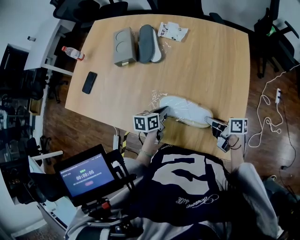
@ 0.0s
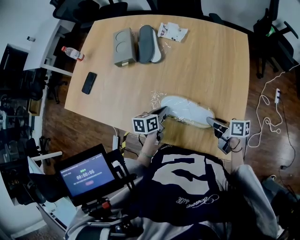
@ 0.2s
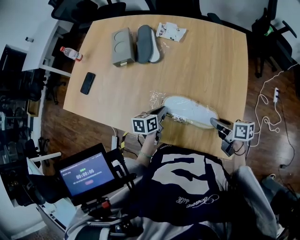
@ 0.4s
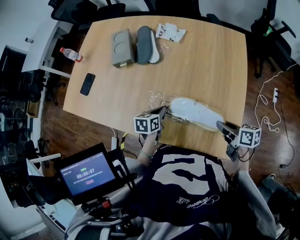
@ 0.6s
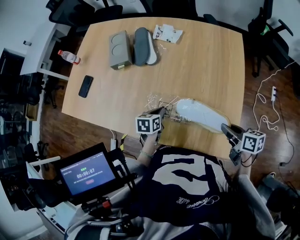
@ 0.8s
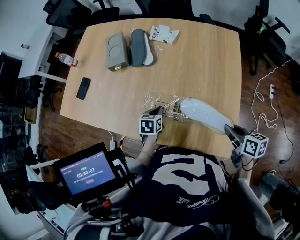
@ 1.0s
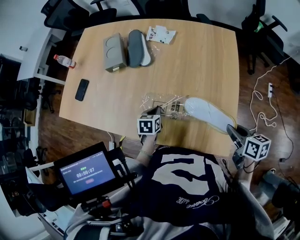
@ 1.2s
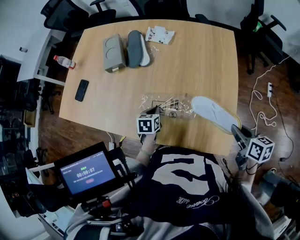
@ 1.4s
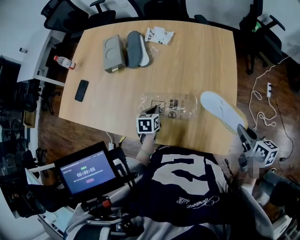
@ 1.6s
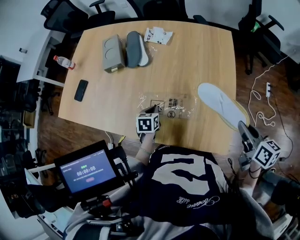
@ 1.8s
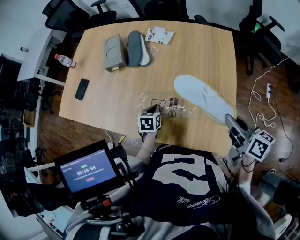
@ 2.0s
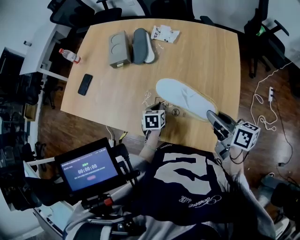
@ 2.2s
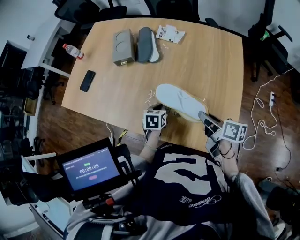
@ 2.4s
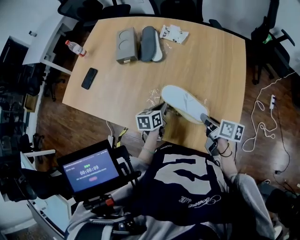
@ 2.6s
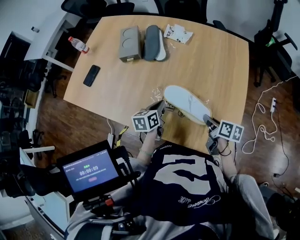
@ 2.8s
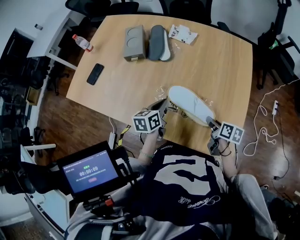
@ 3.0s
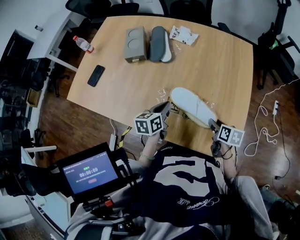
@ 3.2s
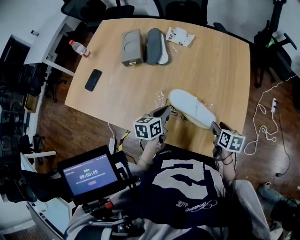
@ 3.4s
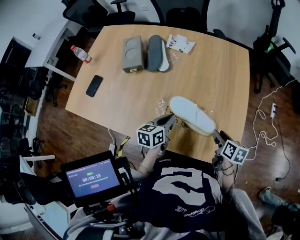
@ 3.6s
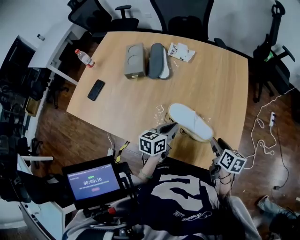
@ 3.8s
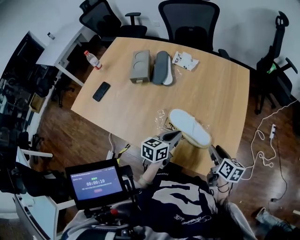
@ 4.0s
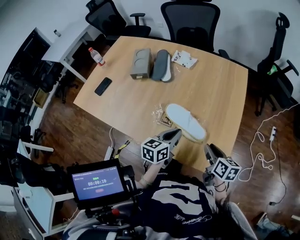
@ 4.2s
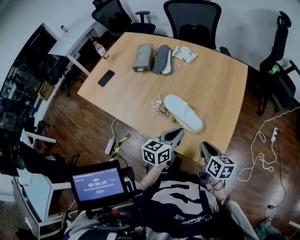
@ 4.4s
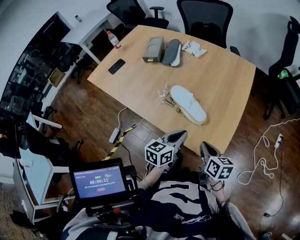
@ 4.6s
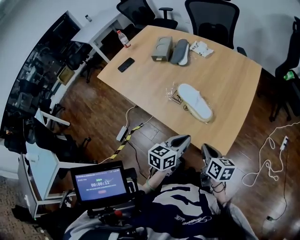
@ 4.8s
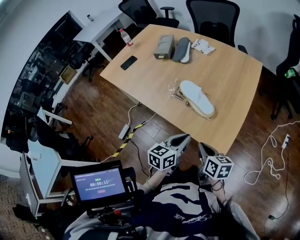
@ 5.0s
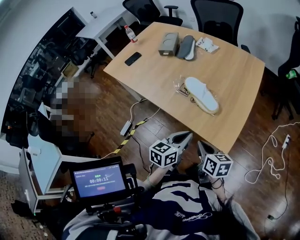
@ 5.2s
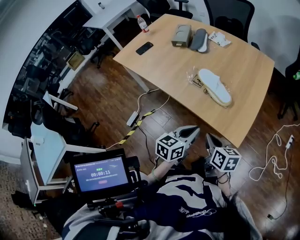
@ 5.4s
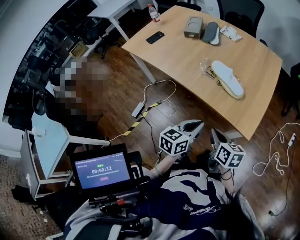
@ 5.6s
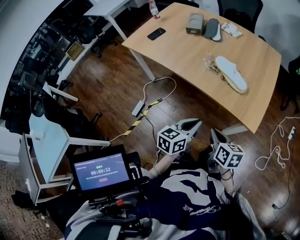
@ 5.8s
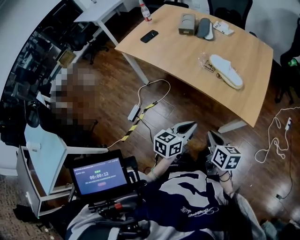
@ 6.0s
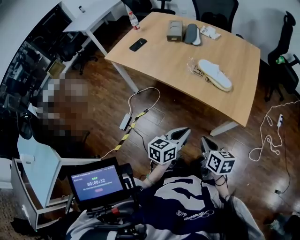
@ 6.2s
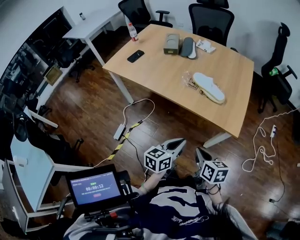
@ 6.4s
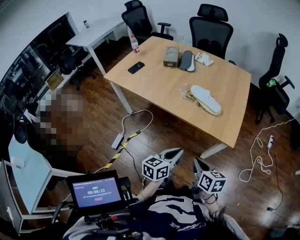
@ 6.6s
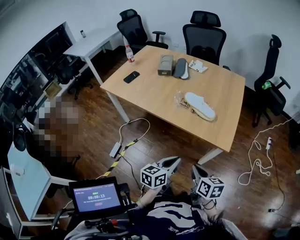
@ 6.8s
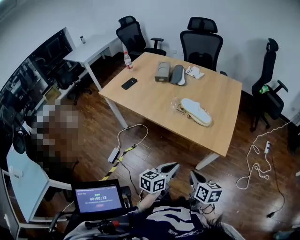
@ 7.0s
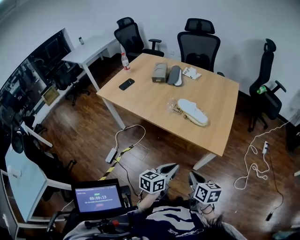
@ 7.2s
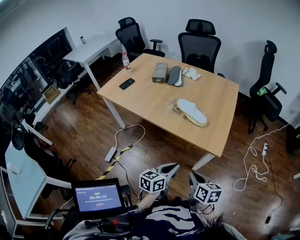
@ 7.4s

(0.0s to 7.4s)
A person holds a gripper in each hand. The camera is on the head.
0.0s - 1.4s: The left gripper turns by some 20 degrees; the right gripper moves to the right, upward and backward, some 20 cm, and turns by some 40 degrees.
1.4s - 3.0s: The right gripper shifts roughly 20 cm to the left, downward and forward. Meanwhile the left gripper shifts approximately 10 cm upward, and changes its angle by about 30 degrees.
3.0s - 4.4s: The left gripper heads to the right, backward and upward, covering some 20 cm, while the right gripper goes some 15 cm backward and upward, rotates some 20 degrees, and opens, then closes once more.
4.4s - 6.0s: The grippers both shift backward and to the left by about 35 cm.
6.0s - 7.4s: Both grippers travel together to the right, about 10 cm.

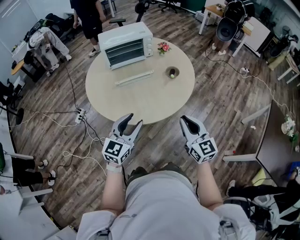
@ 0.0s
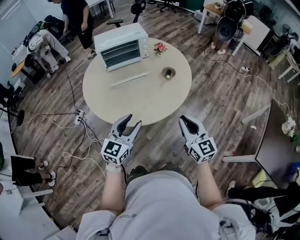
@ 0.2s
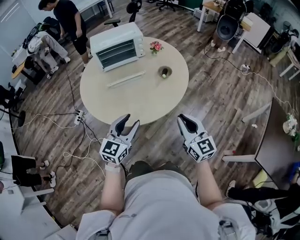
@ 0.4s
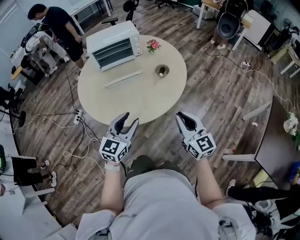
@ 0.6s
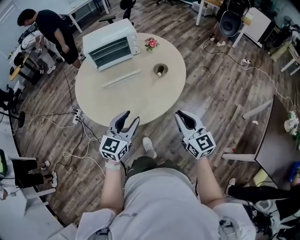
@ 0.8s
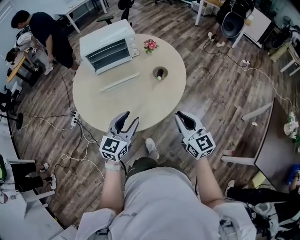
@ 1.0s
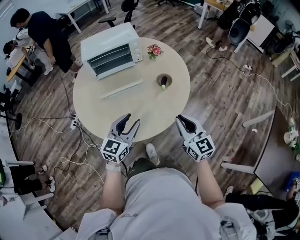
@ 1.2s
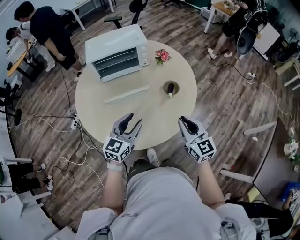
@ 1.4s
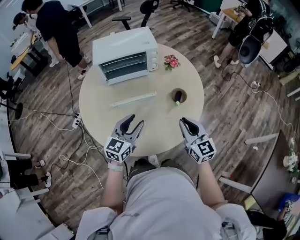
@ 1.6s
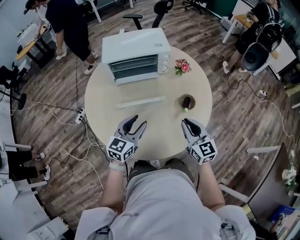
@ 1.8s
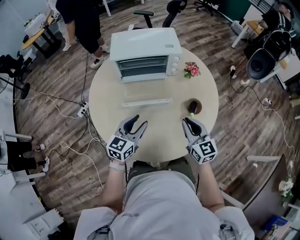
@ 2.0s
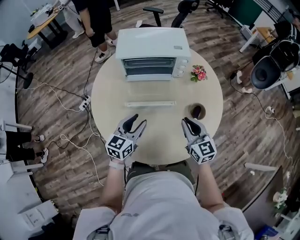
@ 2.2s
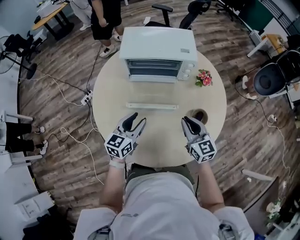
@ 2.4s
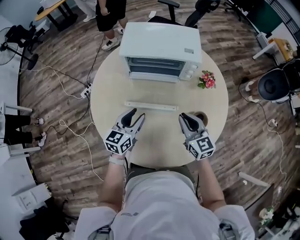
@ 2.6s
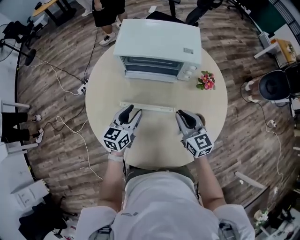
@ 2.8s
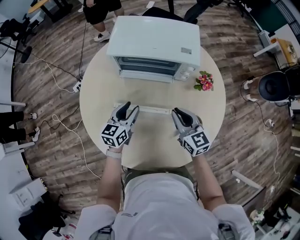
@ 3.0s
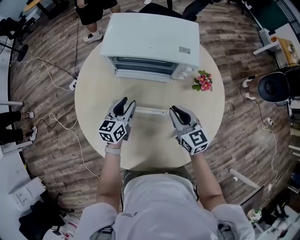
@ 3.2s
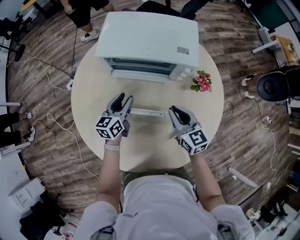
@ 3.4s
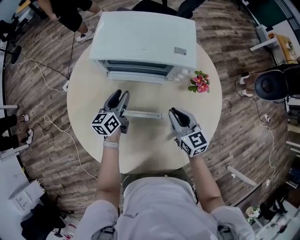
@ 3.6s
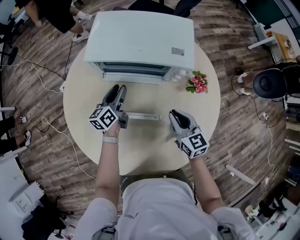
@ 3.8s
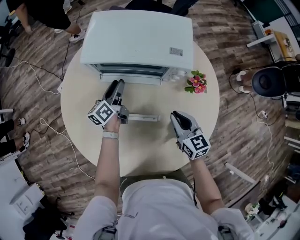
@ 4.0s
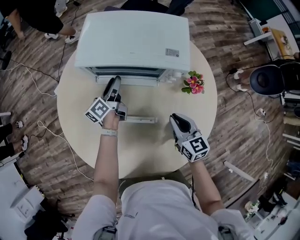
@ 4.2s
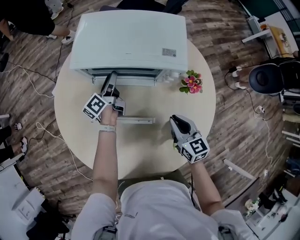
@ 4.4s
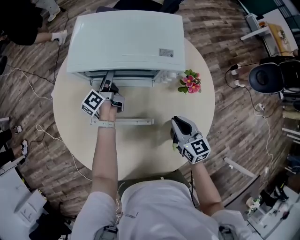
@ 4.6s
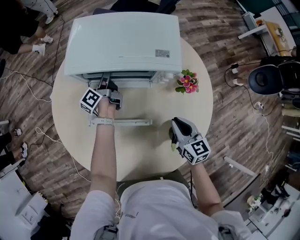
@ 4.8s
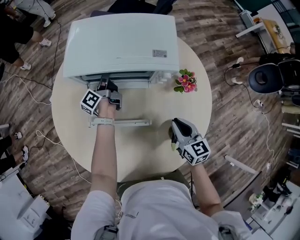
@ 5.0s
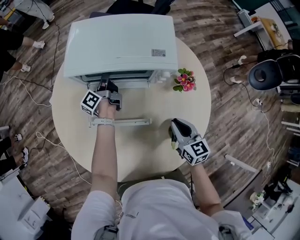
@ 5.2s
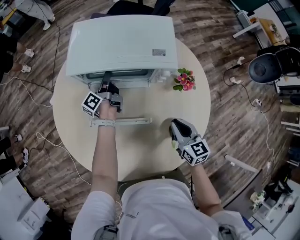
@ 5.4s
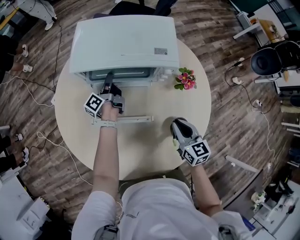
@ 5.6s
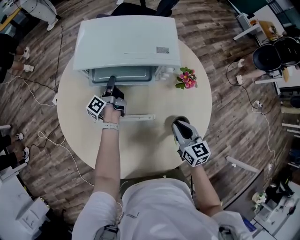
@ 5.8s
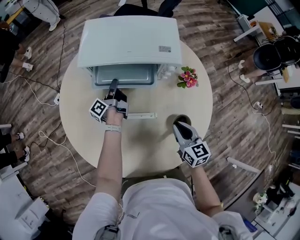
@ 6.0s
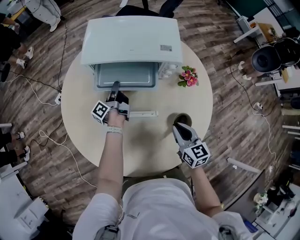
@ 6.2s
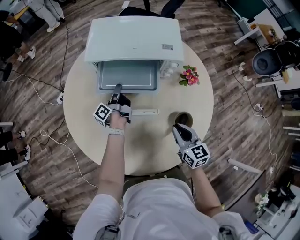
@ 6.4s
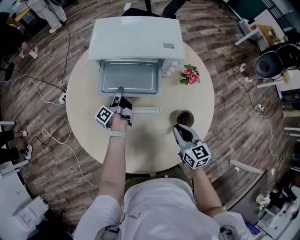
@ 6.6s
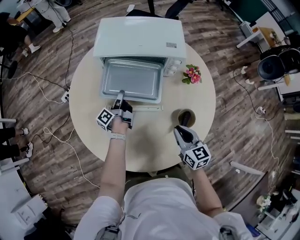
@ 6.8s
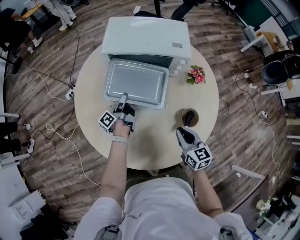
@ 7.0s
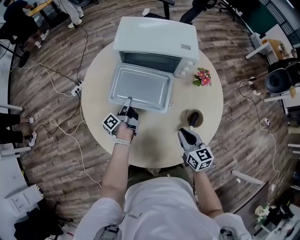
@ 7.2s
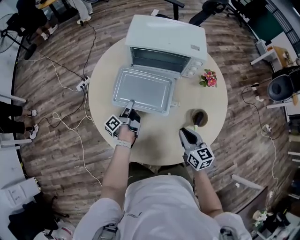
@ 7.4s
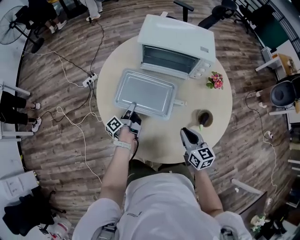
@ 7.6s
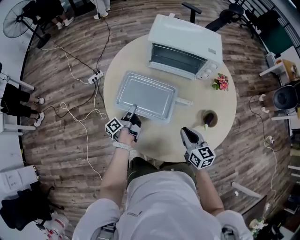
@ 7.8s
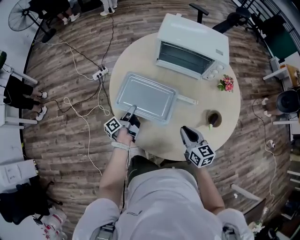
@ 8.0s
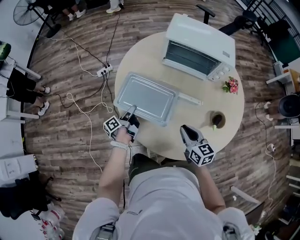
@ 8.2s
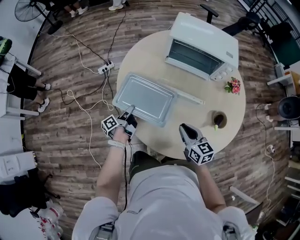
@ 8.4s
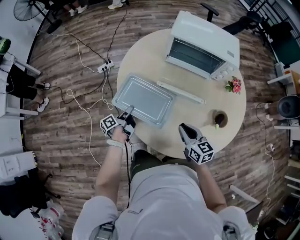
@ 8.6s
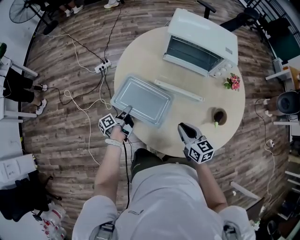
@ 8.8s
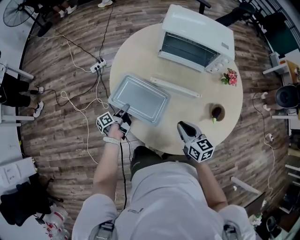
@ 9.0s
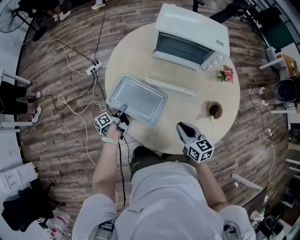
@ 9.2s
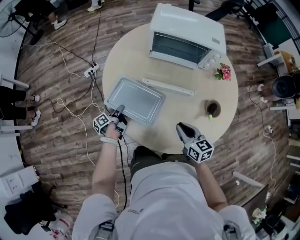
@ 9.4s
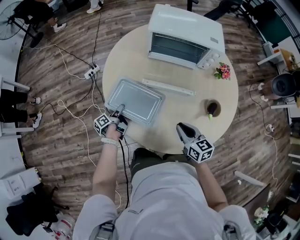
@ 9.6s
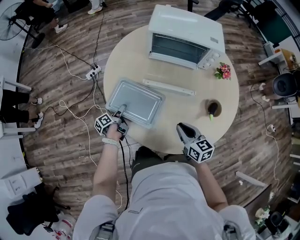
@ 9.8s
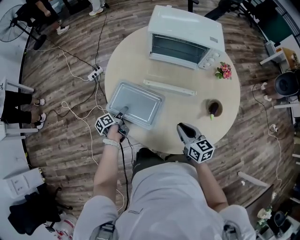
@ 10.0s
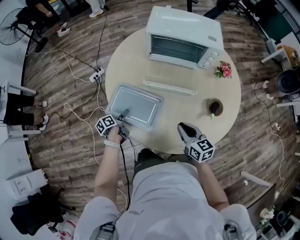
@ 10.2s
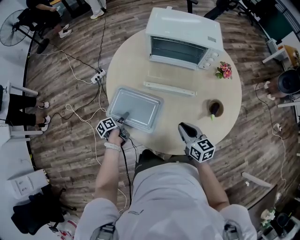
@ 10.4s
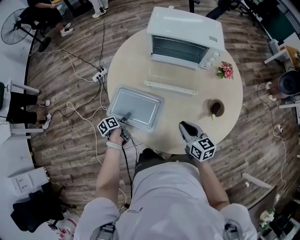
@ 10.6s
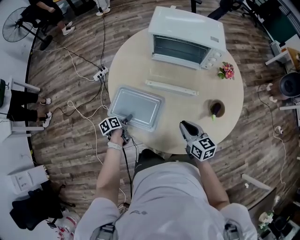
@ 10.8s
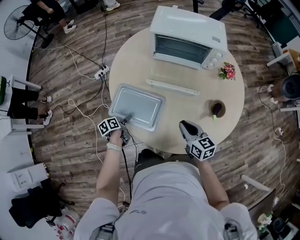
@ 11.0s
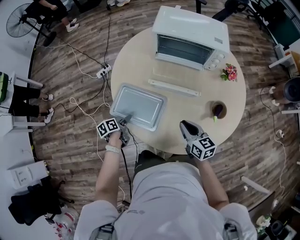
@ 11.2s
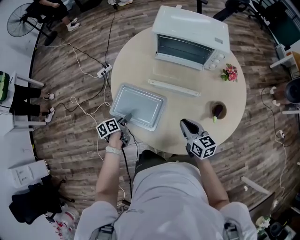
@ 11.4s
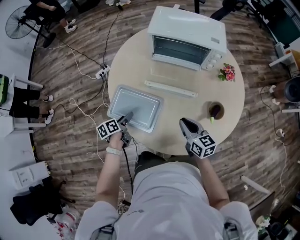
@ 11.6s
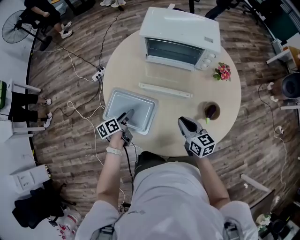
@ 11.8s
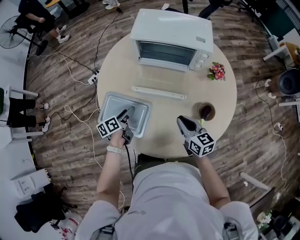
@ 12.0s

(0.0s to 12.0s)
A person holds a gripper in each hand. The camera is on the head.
0.0s - 1.6s: The two grippers go about 25 cm forward.
1.6s - 3.0s: The left gripper travels forward and downward by roughly 25 cm, and turns by some 30 degrees, while the right gripper heads forward, covering approximately 25 cm, and rotates roughly 30 degrees.
3.0s - 4.4s: The right gripper shifts about 10 cm to the right and downward. The left gripper is displaced forward by some 20 cm, and rolls counterclockwise, seen from behind, by approximately 40 degrees.
4.4s - 6.0s: The left gripper changes its angle by about 20 degrees, and closes its fingers; the right gripper shifts approximately 5 cm backward.
6.0s - 7.6s: The right gripper travels to the left and backward by about 15 cm. Meanwhile the left gripper is displaced backward and to the left by about 25 cm.
7.6s - 9.0s: The right gripper travels to the left by some 10 cm, while the left gripper goes about 15 cm to the left, downward and backward.
9.0s - 10.4s: The left gripper changes its angle by roughly 30 degrees, and opens.
10.4s - 12.0s: The left gripper goes about 15 cm to the right, upward and forward, and rotates about 20 degrees; the right gripper moves to the right and forward, some 10 cm.

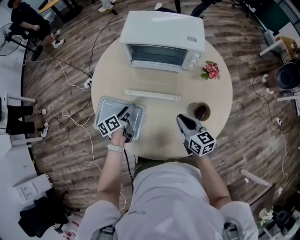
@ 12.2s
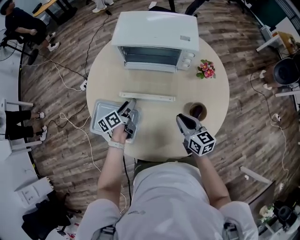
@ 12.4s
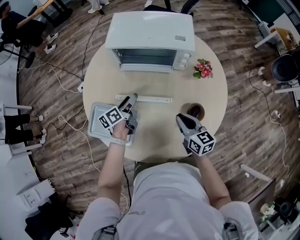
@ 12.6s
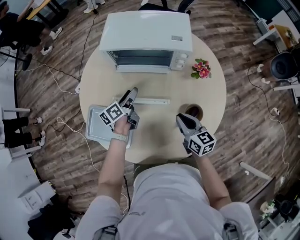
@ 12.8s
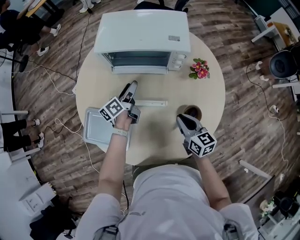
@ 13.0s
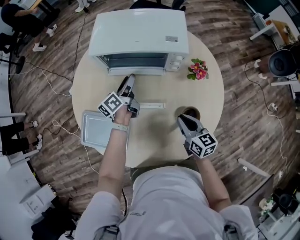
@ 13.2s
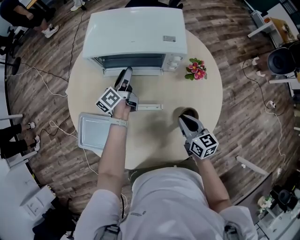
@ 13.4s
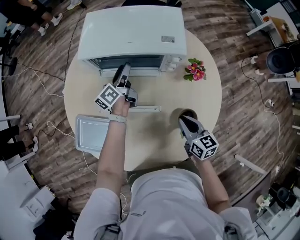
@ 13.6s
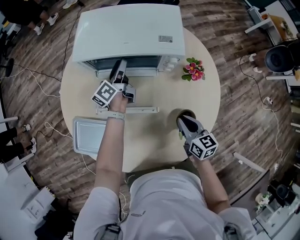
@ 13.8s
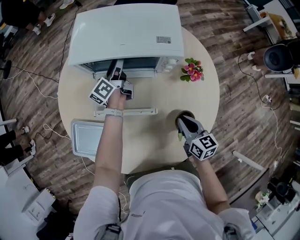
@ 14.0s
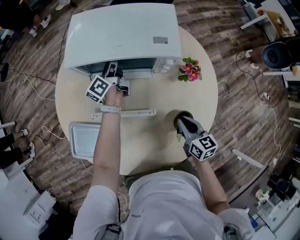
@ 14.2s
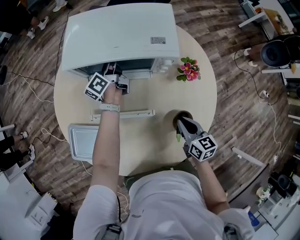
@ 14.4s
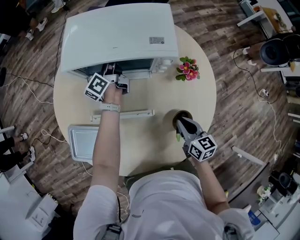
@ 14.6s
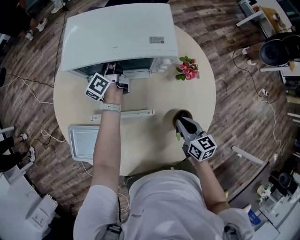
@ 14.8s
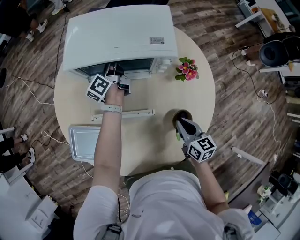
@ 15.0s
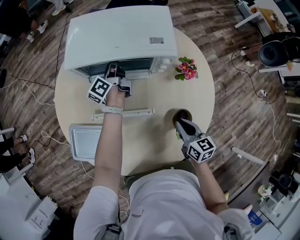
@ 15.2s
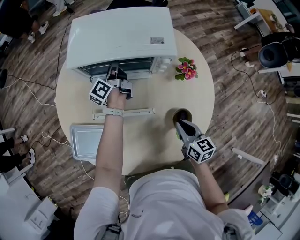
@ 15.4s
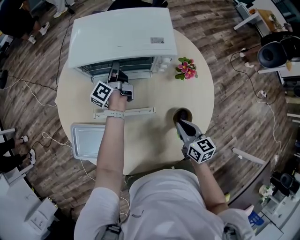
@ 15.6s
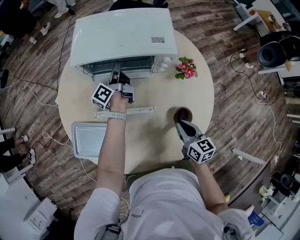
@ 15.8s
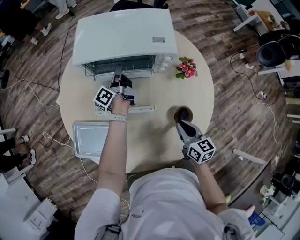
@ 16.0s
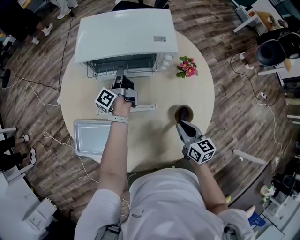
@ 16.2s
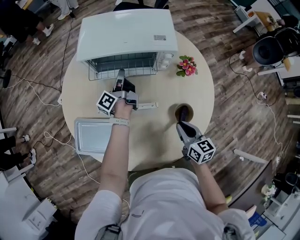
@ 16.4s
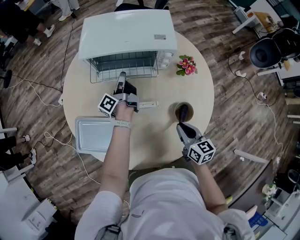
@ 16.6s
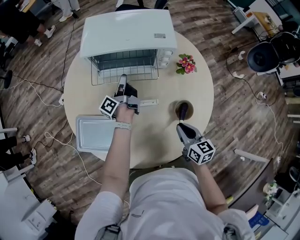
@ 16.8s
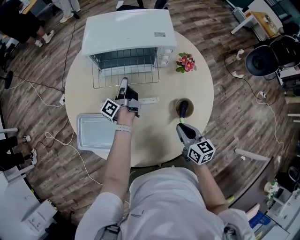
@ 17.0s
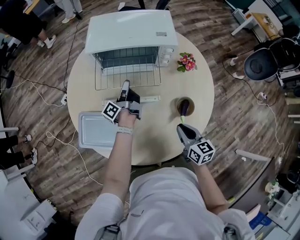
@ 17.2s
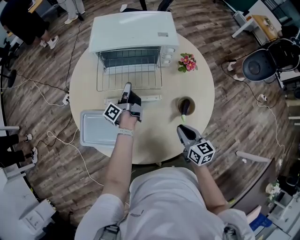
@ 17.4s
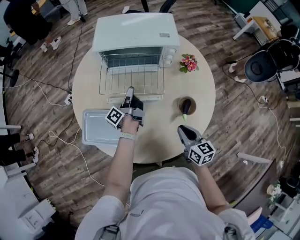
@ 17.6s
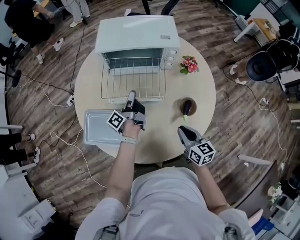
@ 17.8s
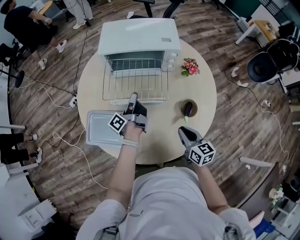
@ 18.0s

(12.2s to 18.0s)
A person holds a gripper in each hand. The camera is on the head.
12.2s - 13.6s: The left gripper heads forward and to the right, covering roughly 30 cm, and rotates approximately 20 degrees. Meanwhile the right gripper heads to the right and forward, covering some 10 cm.
13.6s - 15.0s: The left gripper shifts some 5 cm forward, and closes.
15.0s - 16.6s: The right gripper travels backward by some 5 cm. The left gripper shifts roughly 15 cm backward, and swivels about 20 degrees.
16.6s - 18.0s: The right gripper heads backward, covering about 5 cm, while the left gripper shifts roughly 15 cm backward.
